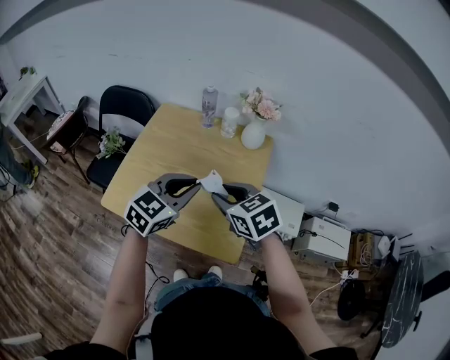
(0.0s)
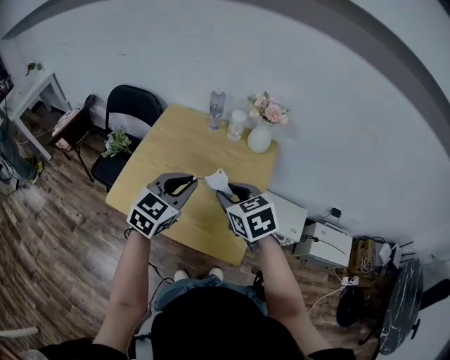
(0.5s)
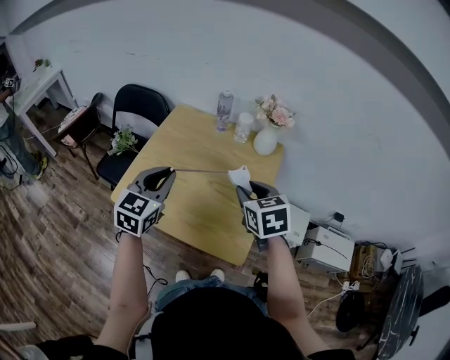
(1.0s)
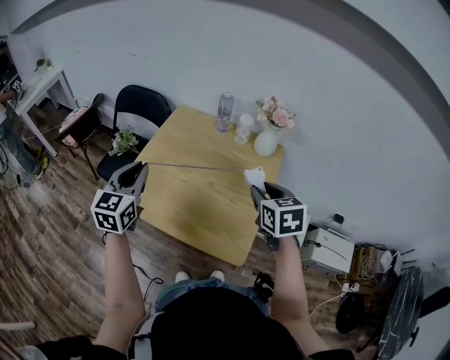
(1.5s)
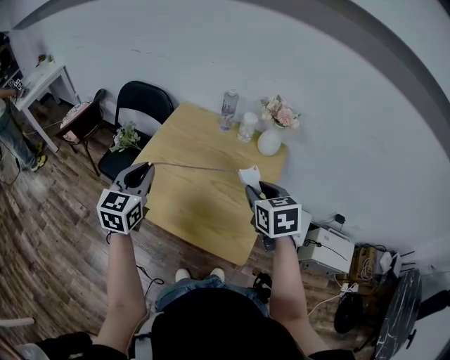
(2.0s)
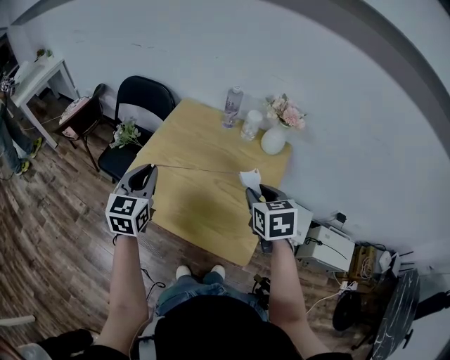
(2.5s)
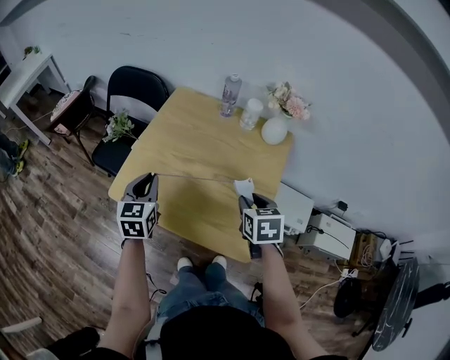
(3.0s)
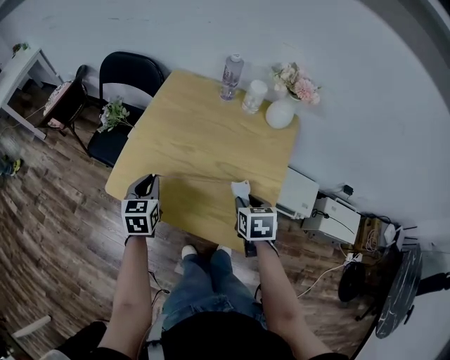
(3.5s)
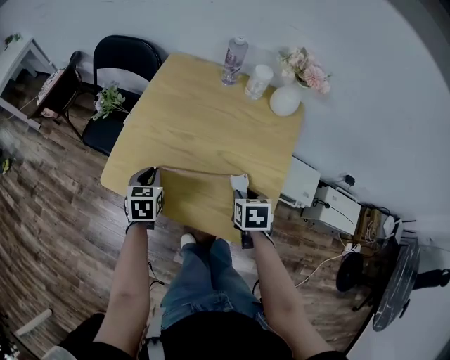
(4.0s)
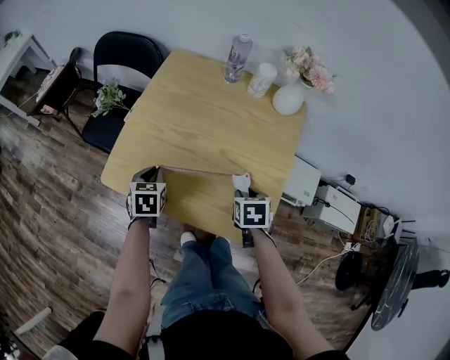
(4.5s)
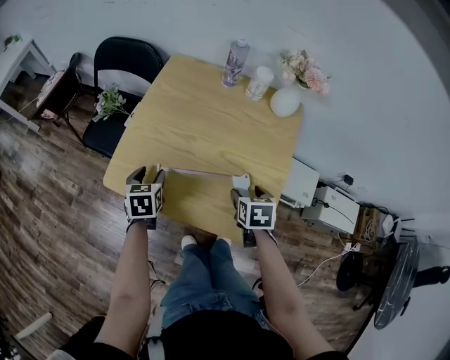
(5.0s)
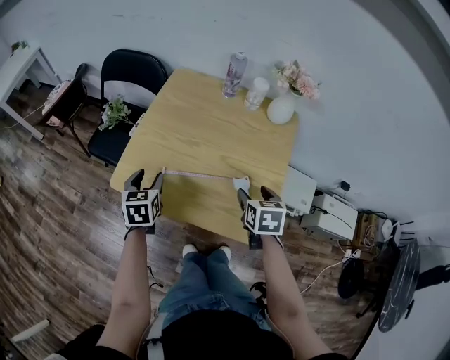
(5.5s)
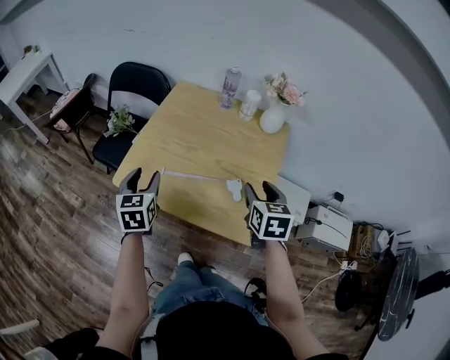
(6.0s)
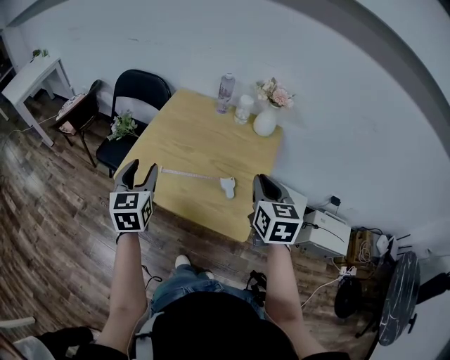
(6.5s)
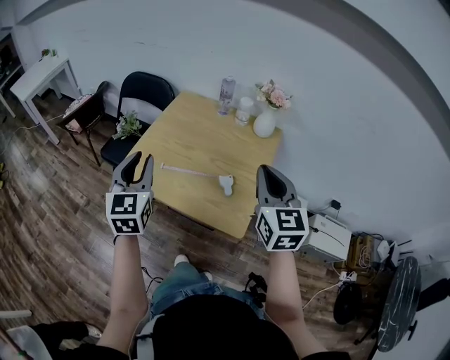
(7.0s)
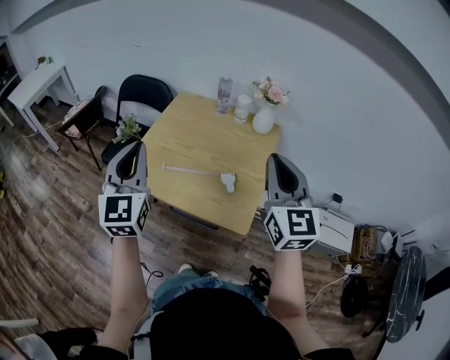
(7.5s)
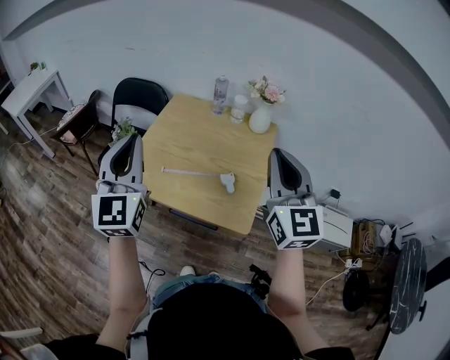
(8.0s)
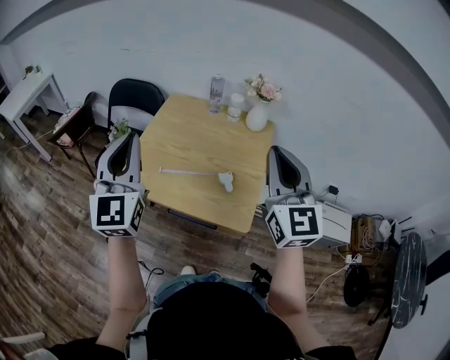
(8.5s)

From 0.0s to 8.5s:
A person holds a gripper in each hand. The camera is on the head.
From 0.0s to 2.0s: The right gripper shifts approximately 5 cm to the right. Meanwhile the left gripper goes some 20 cm to the left, and turns by some 40 degrees.
From 2.0s to 4.0s: Both grippers move downward, approximately 25 cm. The left gripper tips its fingers downward by roughly 30 degrees. Meanwhile the right gripper turns by some 30 degrees.
From 4.0s to 6.5s: The left gripper shifts roughly 25 cm upward and backward, changes its angle by approximately 30 degrees, and opens its fingers, while the right gripper is displaced upward by roughly 25 cm, angles its fingers upward, by approximately 40 degrees, and opens, then closes again.
From 6.5s to 8.5s: Both grippers move upward, about 15 cm. The left gripper turns by approximately 30 degrees, and closes up; the right gripper points its fingers roughly 30 degrees further upward.

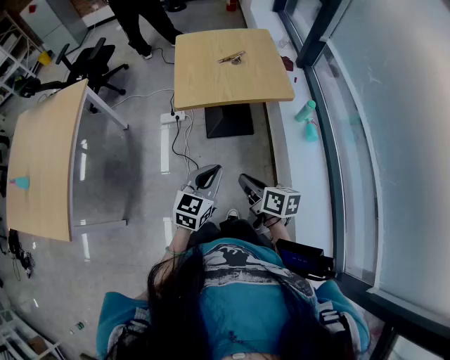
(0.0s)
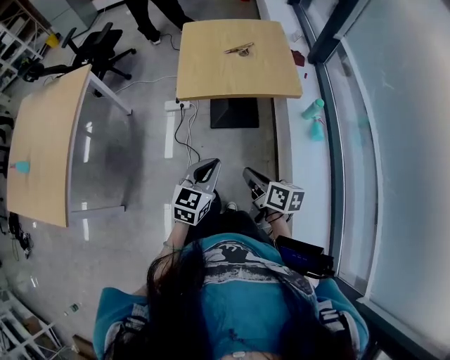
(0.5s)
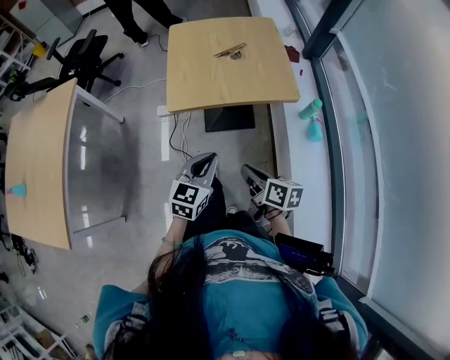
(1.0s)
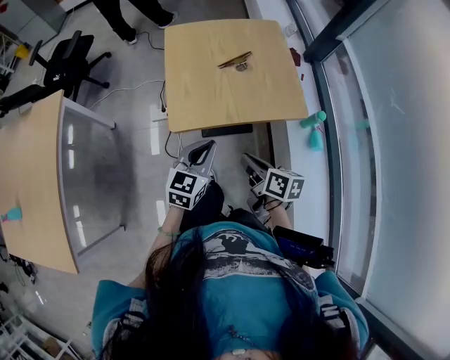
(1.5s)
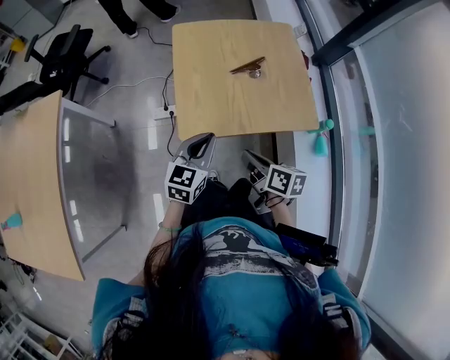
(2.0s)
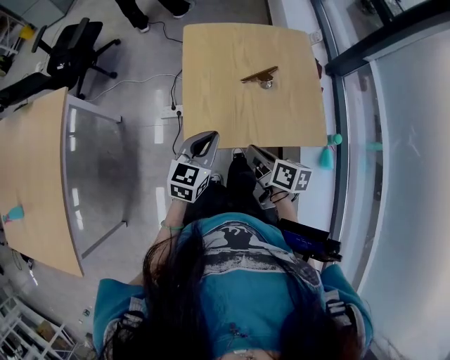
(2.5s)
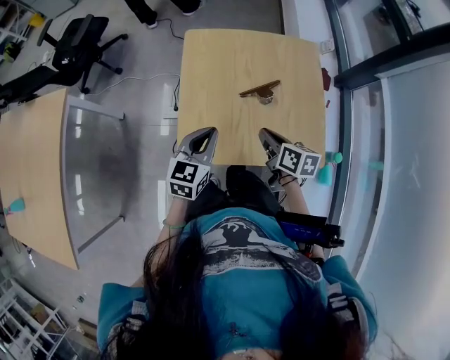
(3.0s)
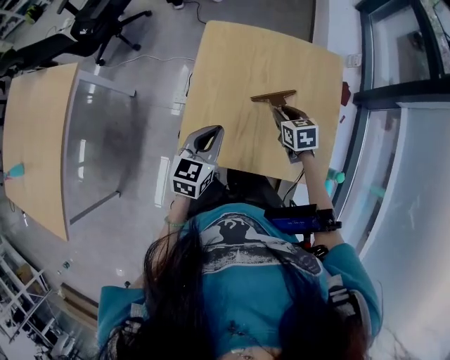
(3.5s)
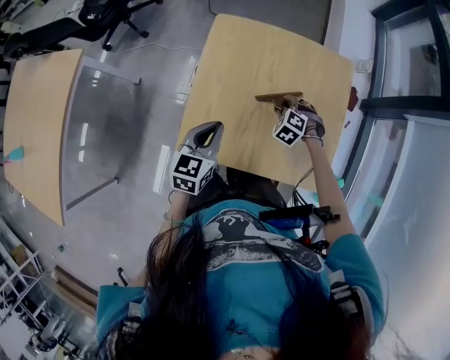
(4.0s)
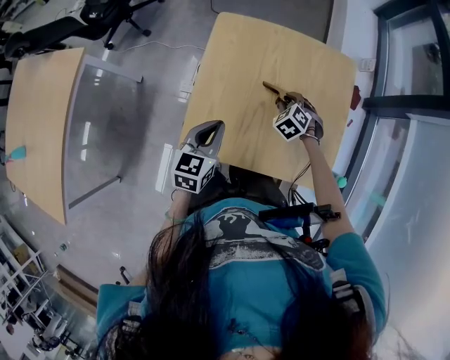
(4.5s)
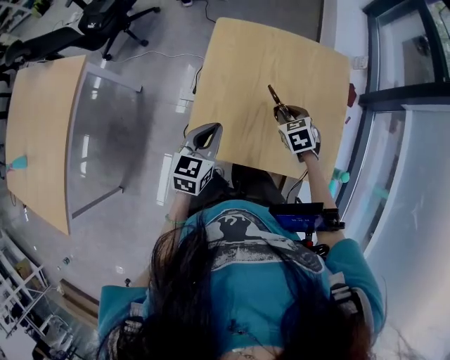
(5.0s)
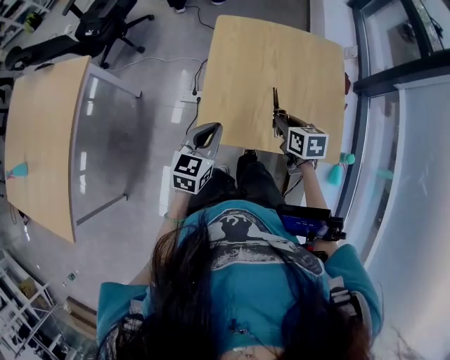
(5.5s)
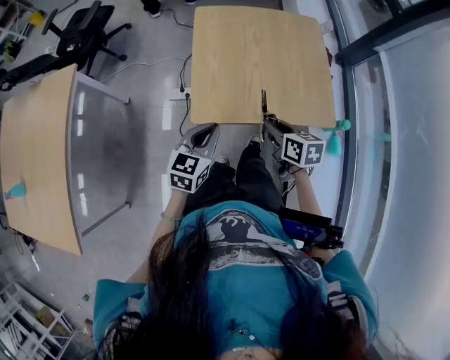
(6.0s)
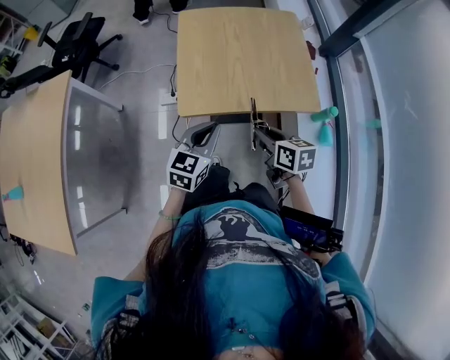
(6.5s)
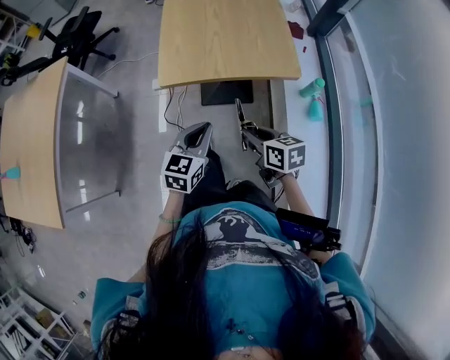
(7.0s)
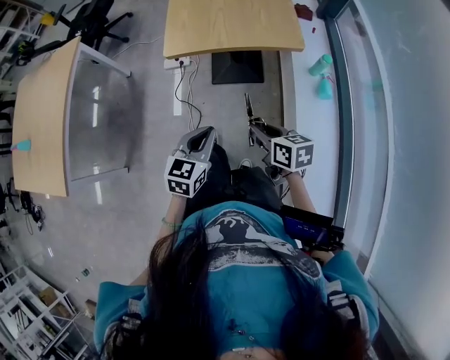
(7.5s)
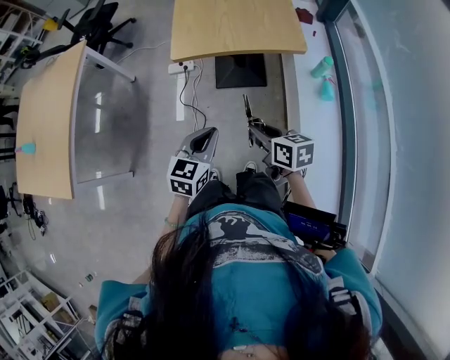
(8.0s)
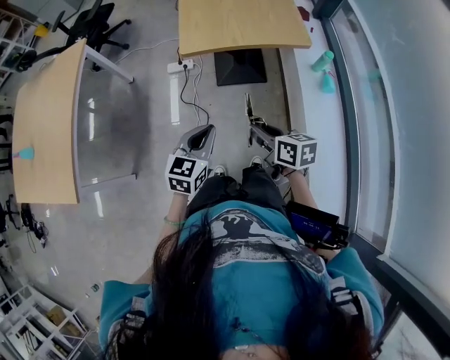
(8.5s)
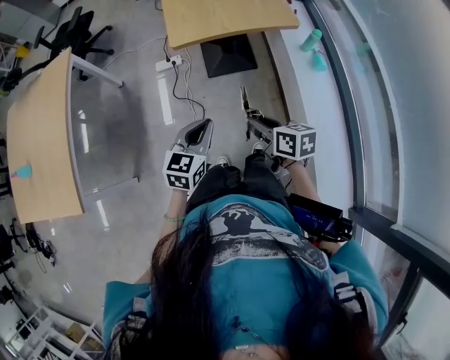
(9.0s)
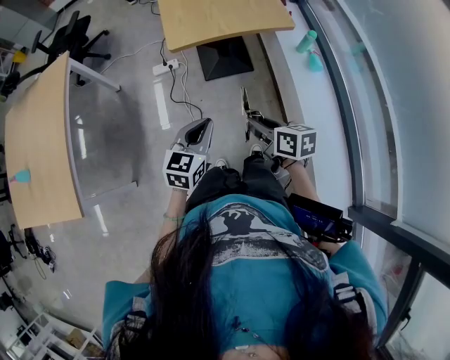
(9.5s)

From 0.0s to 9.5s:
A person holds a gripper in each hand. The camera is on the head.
From 0.0s to 2.0s: The grippers both shift forward by approximately 35 cm.
From 2.0s to 4.0s: The left gripper travels forward by about 20 cm, and changes its angle by some 20 degrees. Meanwhile the right gripper is displaced forward and downward by roughly 40 cm, rotates around the line of its fingers by about 100 degrees, counterclockwise from behind, and opens up.
From 4.0s to 5.5s: The left gripper heads backward and to the left, covering about 10 cm. The right gripper goes some 20 cm backward, upward and to the left, and twists some 70 degrees clockwise, seen from behind.
From 5.5s to 7.5s: The two grippers travel together, backward, roughly 50 cm.
From 7.5s to 9.5s: Both grippers travel together to the left and backward, approximately 15 cm.

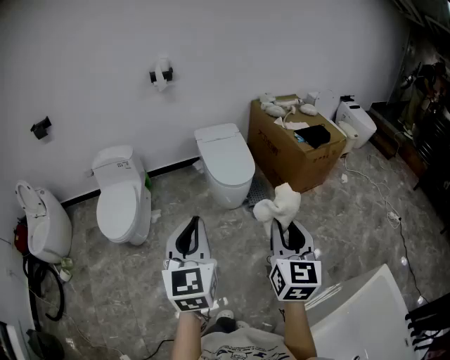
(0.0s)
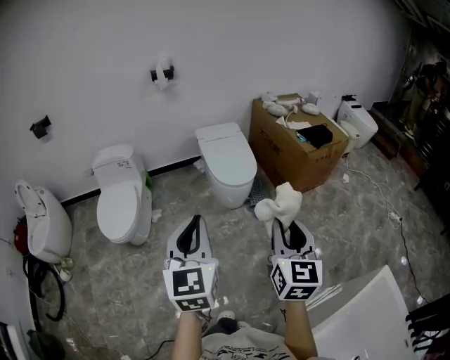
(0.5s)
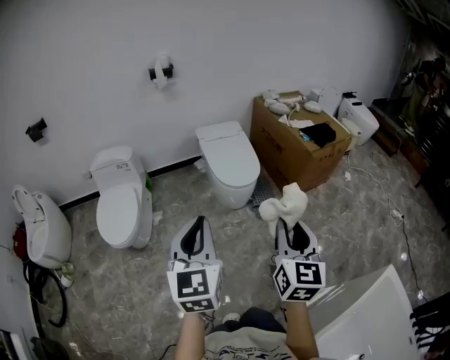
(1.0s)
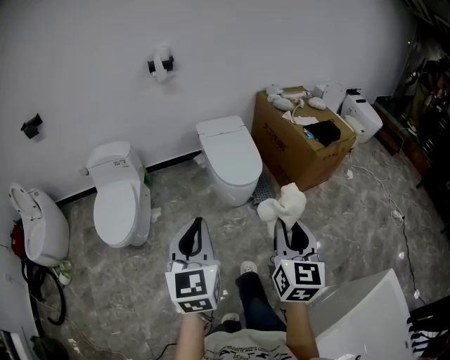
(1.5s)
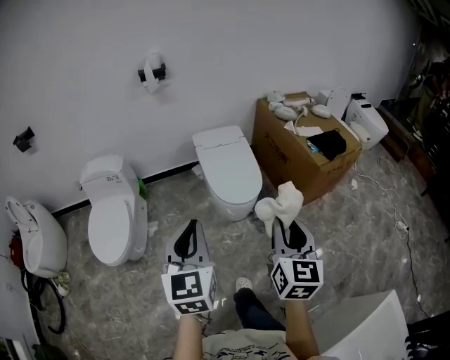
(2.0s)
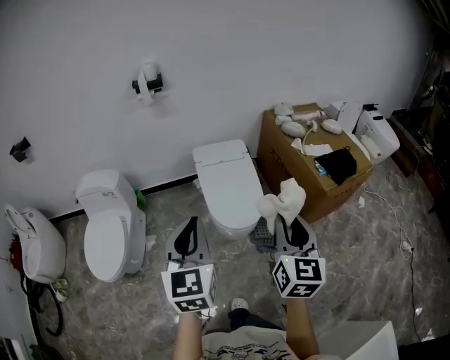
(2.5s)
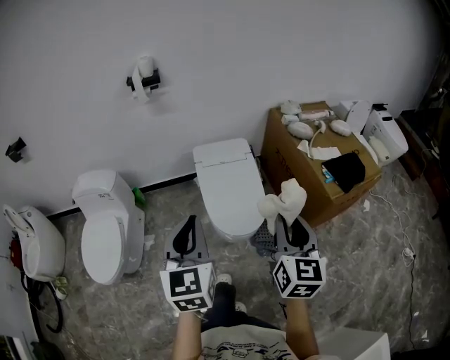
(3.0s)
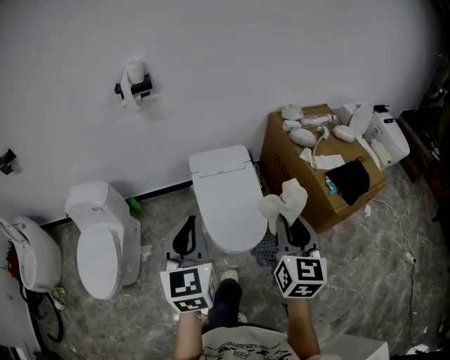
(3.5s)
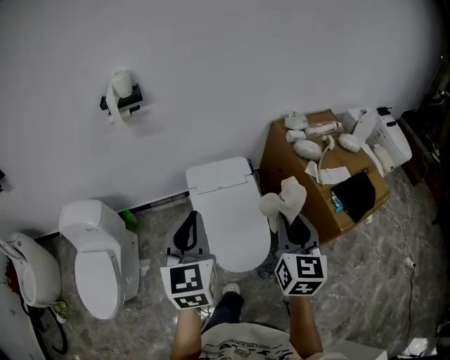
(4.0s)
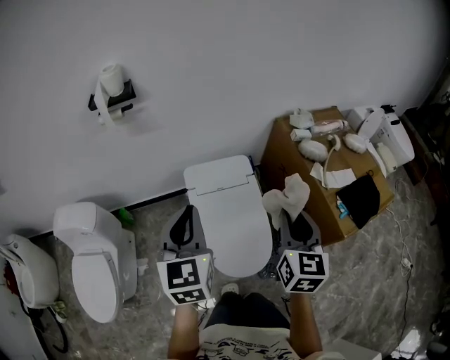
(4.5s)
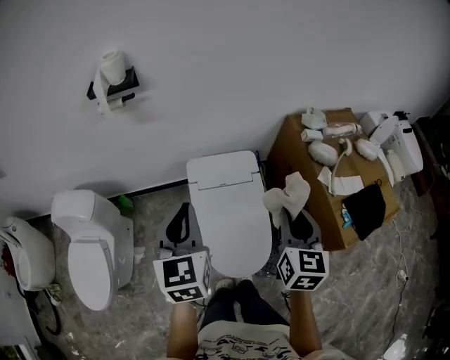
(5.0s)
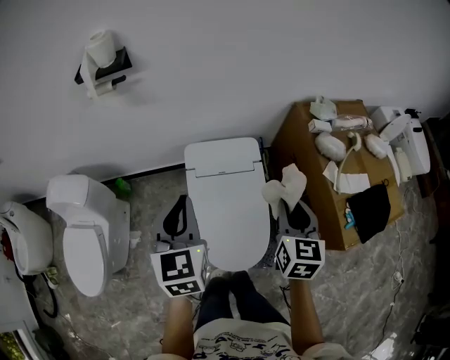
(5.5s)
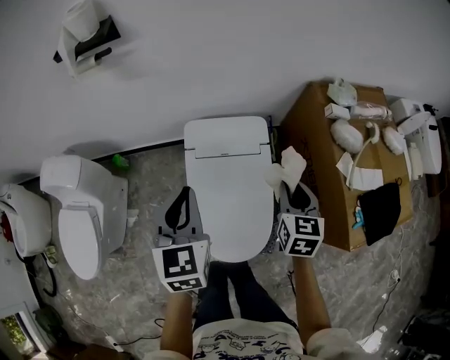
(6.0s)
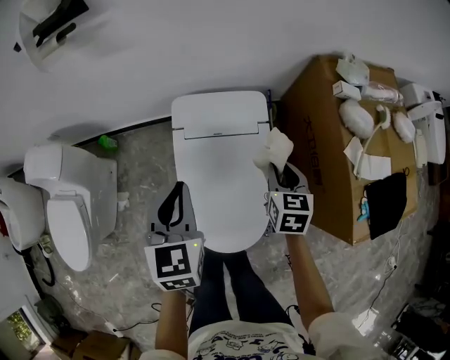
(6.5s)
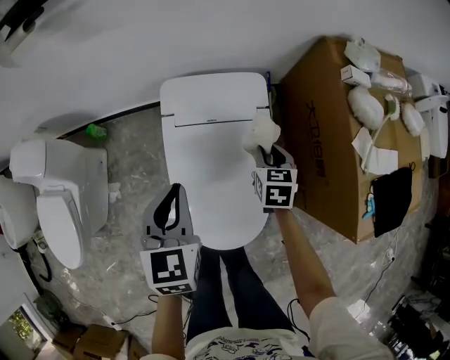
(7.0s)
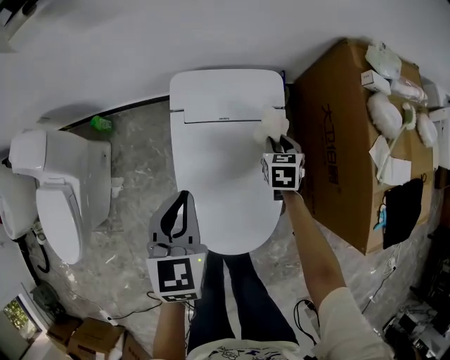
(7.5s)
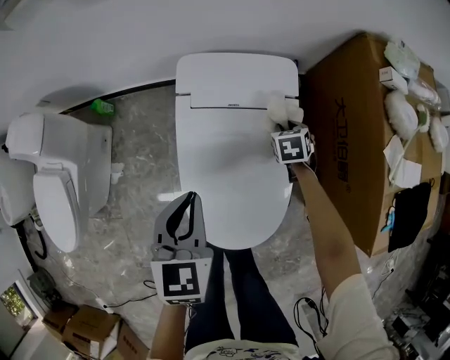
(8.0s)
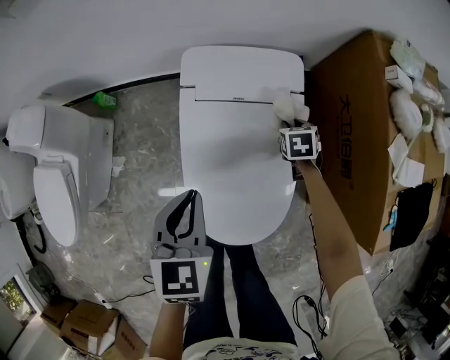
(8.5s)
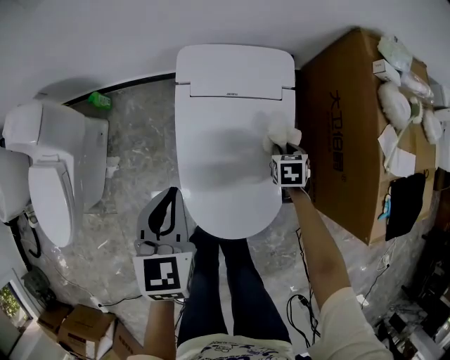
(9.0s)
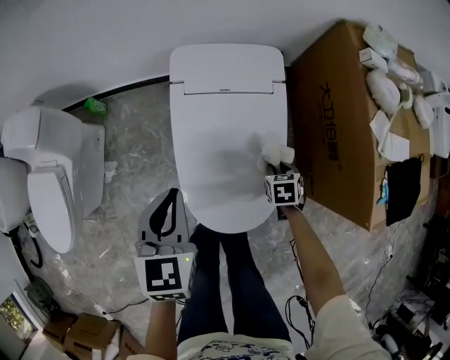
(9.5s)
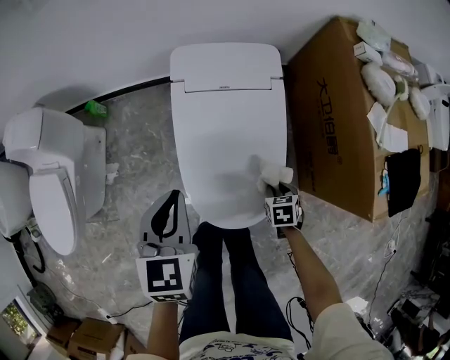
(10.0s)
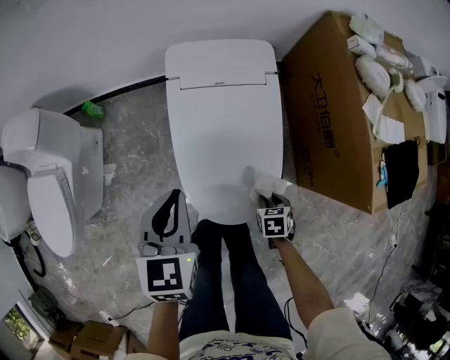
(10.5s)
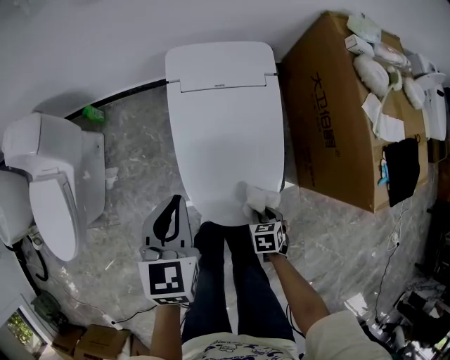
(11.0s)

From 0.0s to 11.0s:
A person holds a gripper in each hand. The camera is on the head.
From 0.0s to 2.0s: Both grippers travel together forward, about 25 cm.
From 2.0s to 3.5s: Both grippers travel together forward, roughly 35 cm.
From 3.5s to 5.5s: Both grippers move forward, approximately 30 cm.
From 5.5s to 7.5s: The right gripper travels downward and forward by about 40 cm, and swivels some 30 degrees. The left gripper moves downward, about 25 cm.
From 7.5s to 9.0s: The left gripper heads backward, covering roughly 5 cm. The right gripper is displaced backward and downward by some 10 cm.
From 9.0s to 11.0s: The left gripper goes roughly 5 cm backward. The right gripper heads backward, covering some 30 cm.
